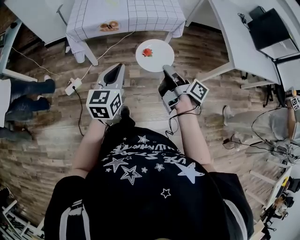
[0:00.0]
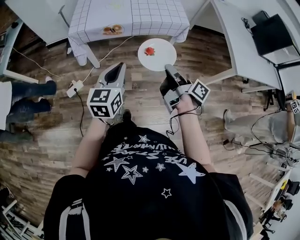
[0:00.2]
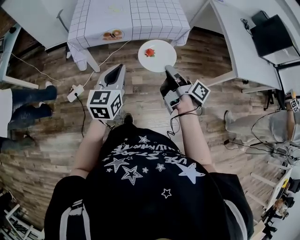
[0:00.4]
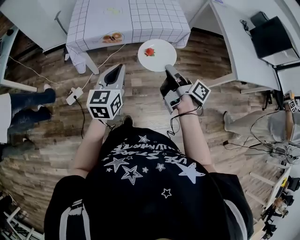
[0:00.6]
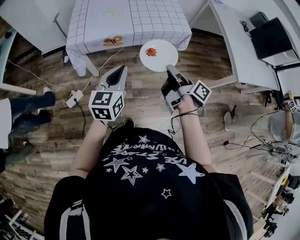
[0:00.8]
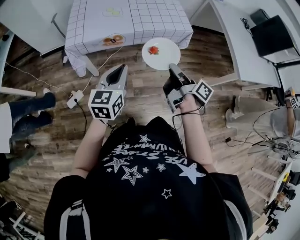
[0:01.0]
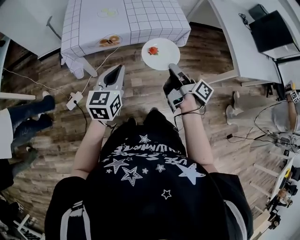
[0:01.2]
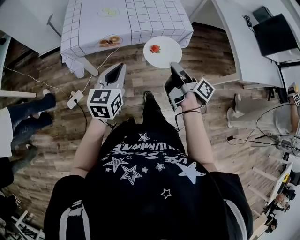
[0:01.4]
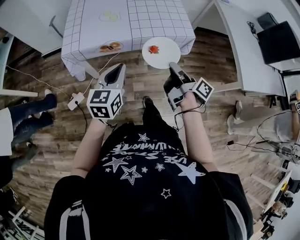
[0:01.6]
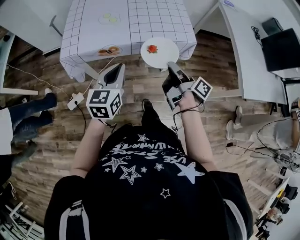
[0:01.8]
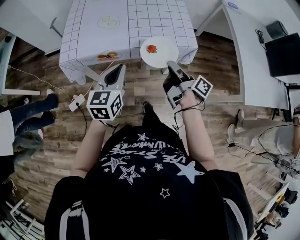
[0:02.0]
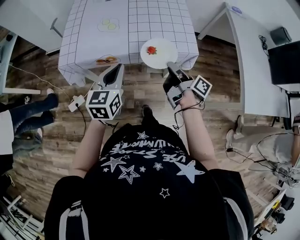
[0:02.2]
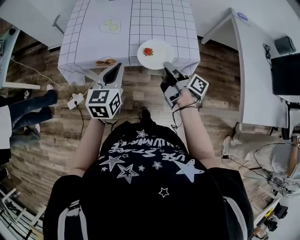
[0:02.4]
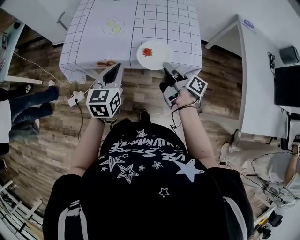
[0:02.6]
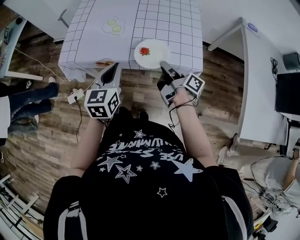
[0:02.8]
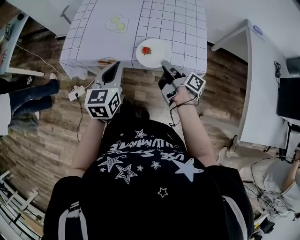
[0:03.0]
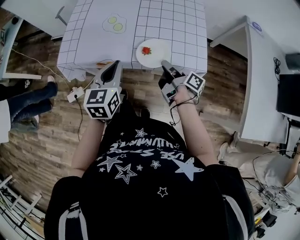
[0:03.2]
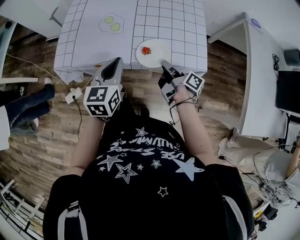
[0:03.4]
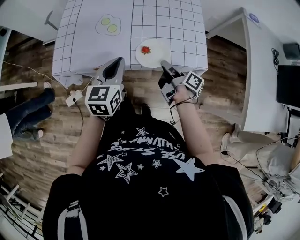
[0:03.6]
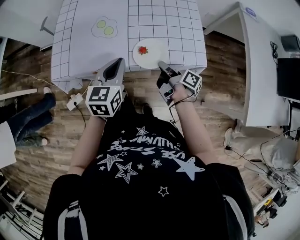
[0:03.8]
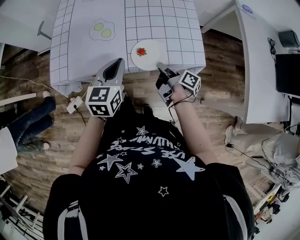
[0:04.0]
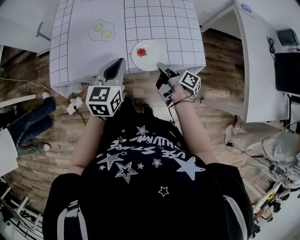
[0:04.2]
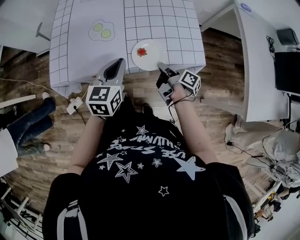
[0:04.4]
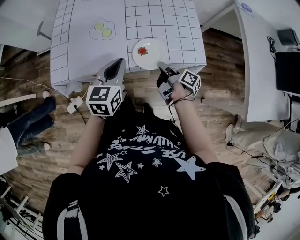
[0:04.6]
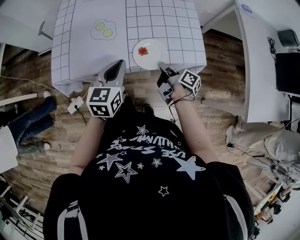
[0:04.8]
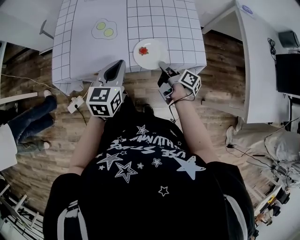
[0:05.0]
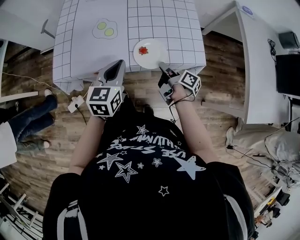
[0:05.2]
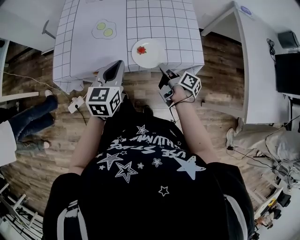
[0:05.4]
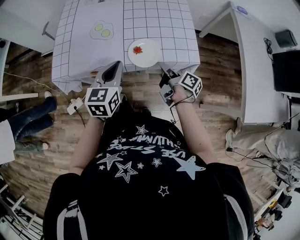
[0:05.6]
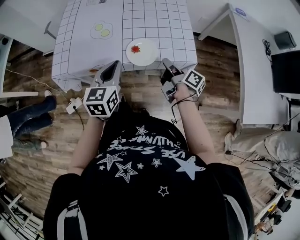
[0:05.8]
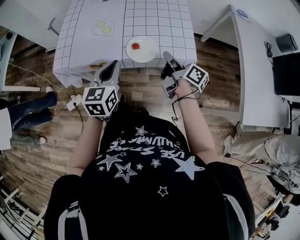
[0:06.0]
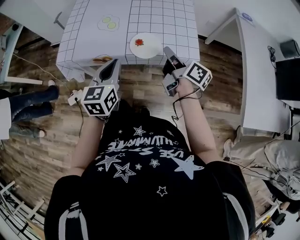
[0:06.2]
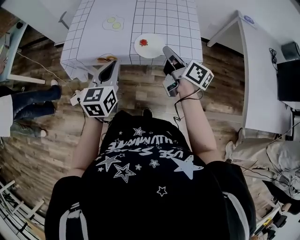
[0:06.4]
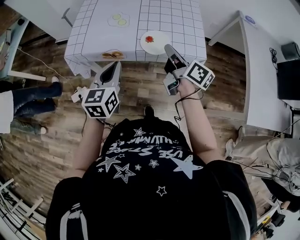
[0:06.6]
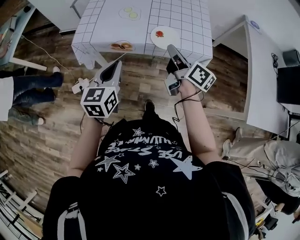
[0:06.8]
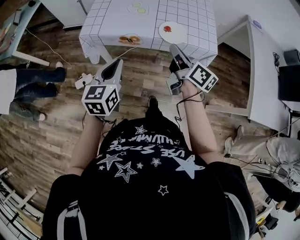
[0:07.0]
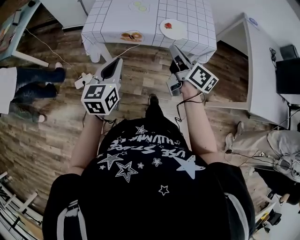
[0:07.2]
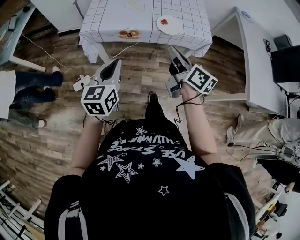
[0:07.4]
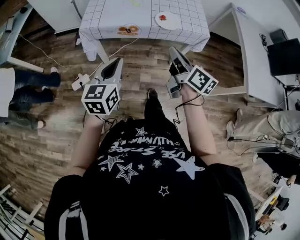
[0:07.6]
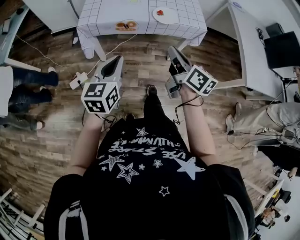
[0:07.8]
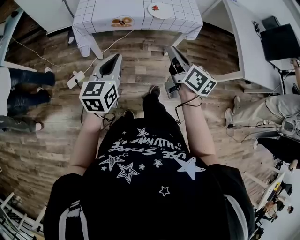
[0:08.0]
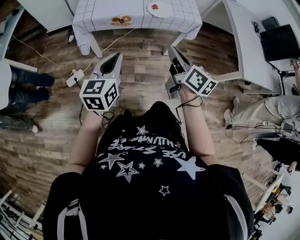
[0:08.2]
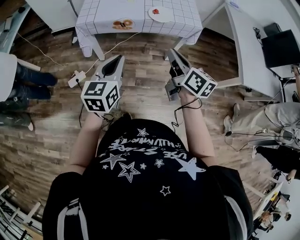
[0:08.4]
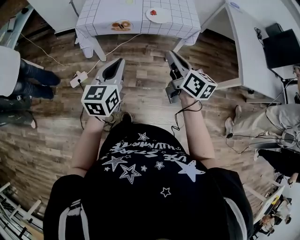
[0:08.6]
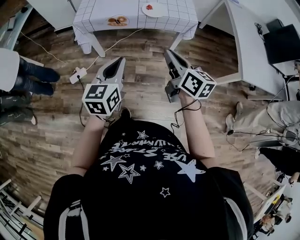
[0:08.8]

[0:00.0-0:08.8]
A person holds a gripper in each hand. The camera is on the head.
0:00.0 to 0:01.4: The left gripper shifts by some 15 cm.
0:01.4 to 0:03.0: The left gripper ends up roughly 20 cm from where it was, and turns by roughly 20 degrees.
0:03.0 to 0:04.4: The left gripper changes place by some 10 cm.
0:04.4 to 0:05.8: The left gripper moves approximately 5 cm.
0:05.8 to 0:07.4: The left gripper shifts by about 25 cm.
0:07.4 to 0:08.8: The left gripper shifts by some 15 cm.

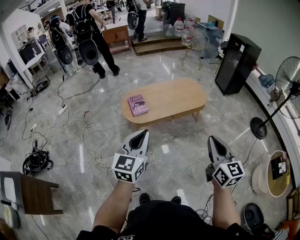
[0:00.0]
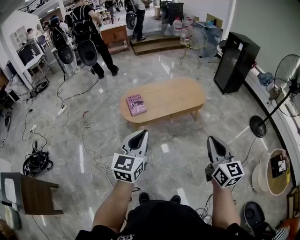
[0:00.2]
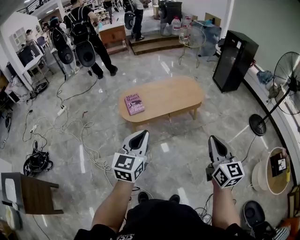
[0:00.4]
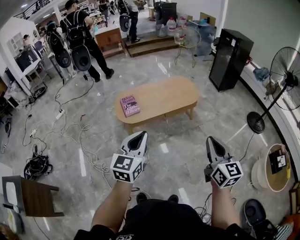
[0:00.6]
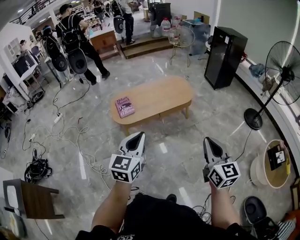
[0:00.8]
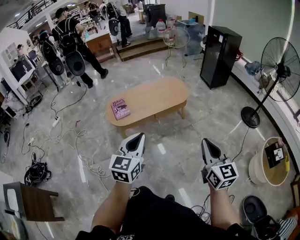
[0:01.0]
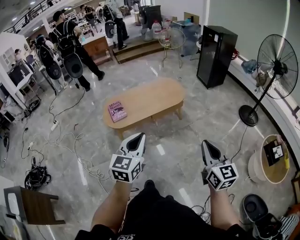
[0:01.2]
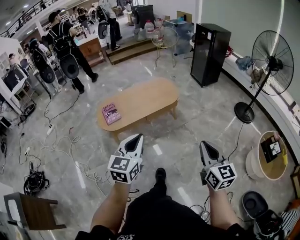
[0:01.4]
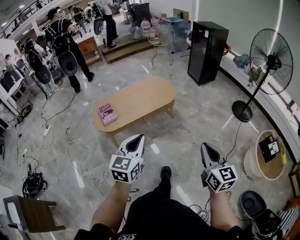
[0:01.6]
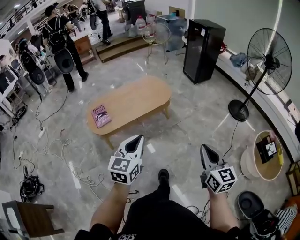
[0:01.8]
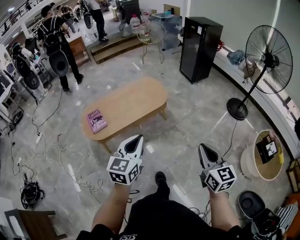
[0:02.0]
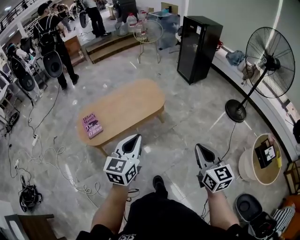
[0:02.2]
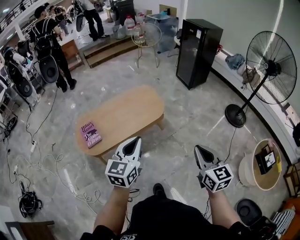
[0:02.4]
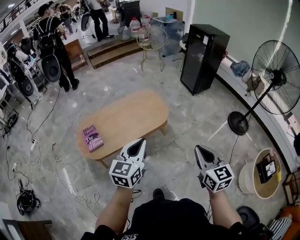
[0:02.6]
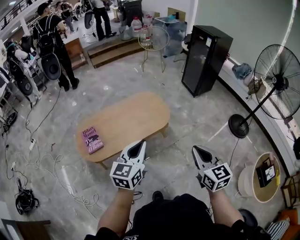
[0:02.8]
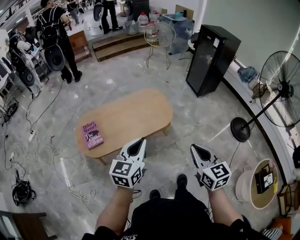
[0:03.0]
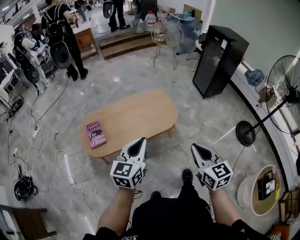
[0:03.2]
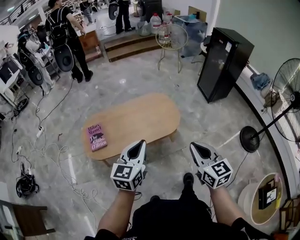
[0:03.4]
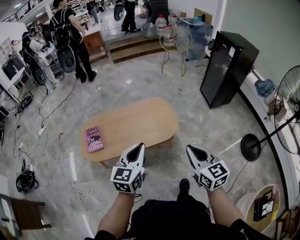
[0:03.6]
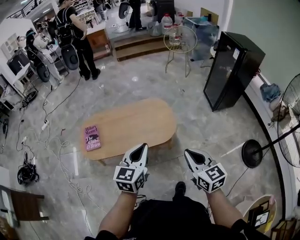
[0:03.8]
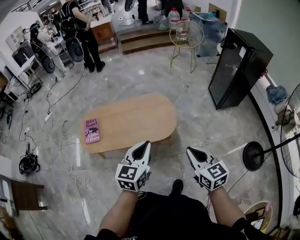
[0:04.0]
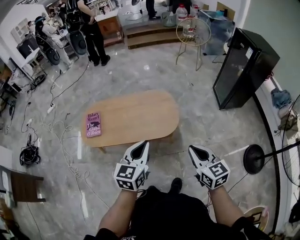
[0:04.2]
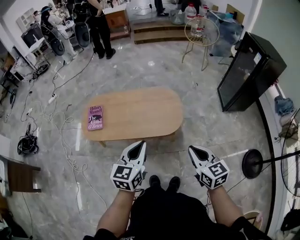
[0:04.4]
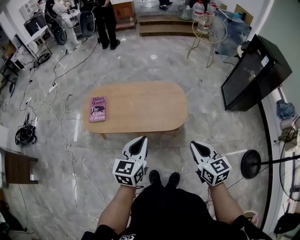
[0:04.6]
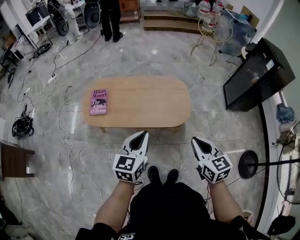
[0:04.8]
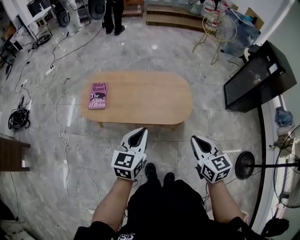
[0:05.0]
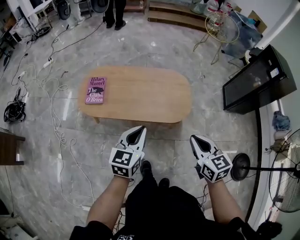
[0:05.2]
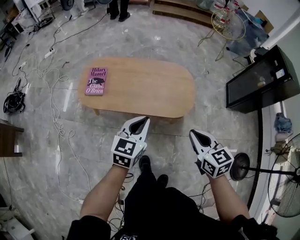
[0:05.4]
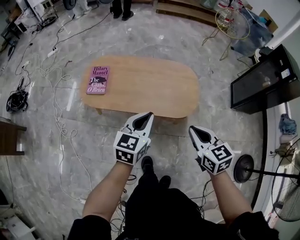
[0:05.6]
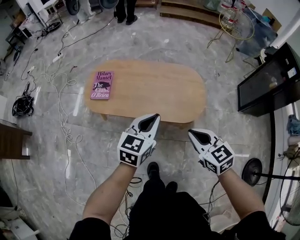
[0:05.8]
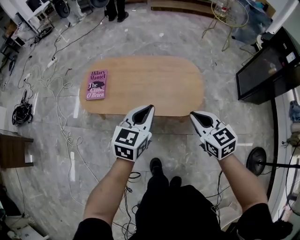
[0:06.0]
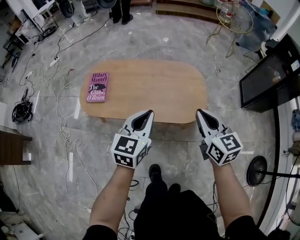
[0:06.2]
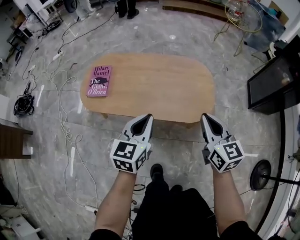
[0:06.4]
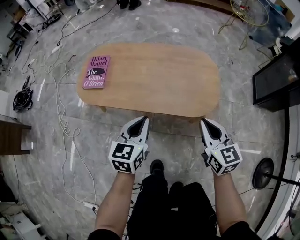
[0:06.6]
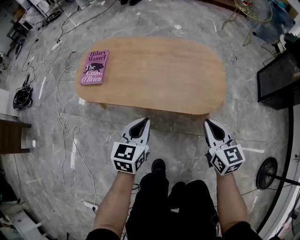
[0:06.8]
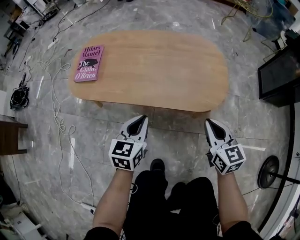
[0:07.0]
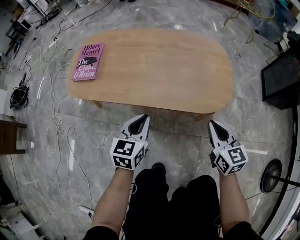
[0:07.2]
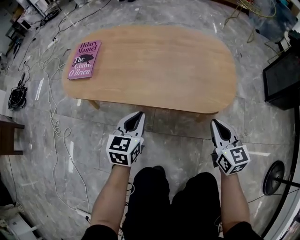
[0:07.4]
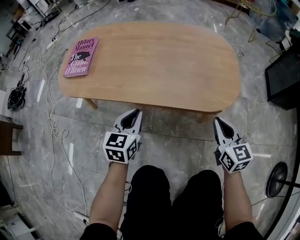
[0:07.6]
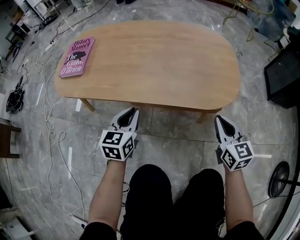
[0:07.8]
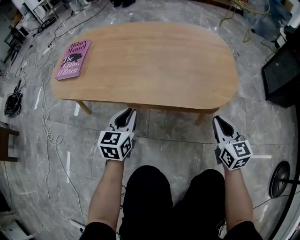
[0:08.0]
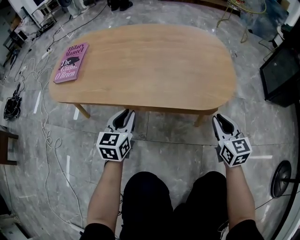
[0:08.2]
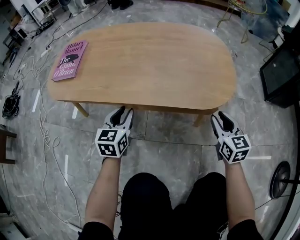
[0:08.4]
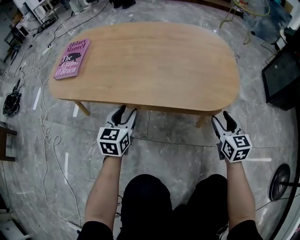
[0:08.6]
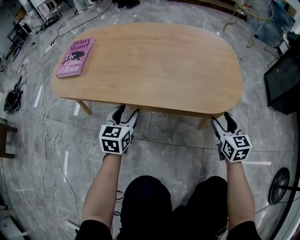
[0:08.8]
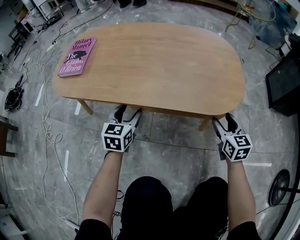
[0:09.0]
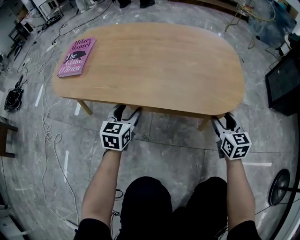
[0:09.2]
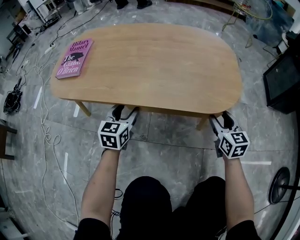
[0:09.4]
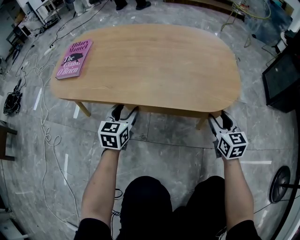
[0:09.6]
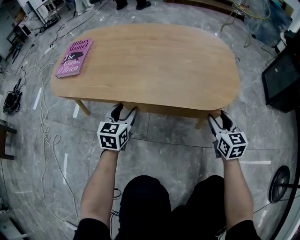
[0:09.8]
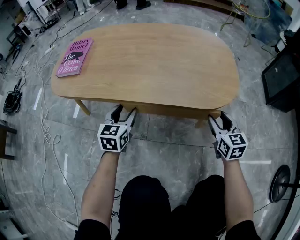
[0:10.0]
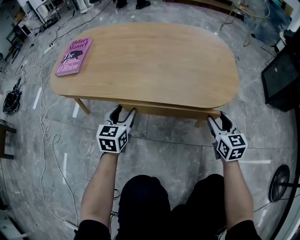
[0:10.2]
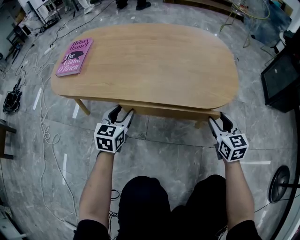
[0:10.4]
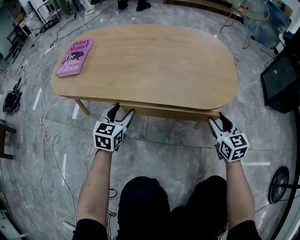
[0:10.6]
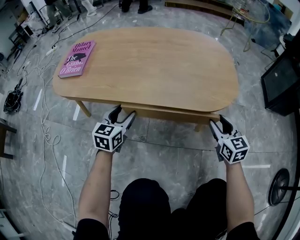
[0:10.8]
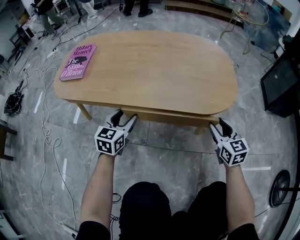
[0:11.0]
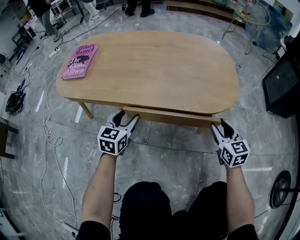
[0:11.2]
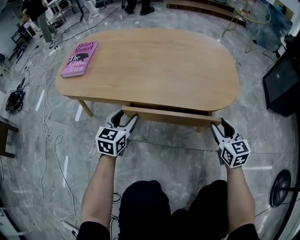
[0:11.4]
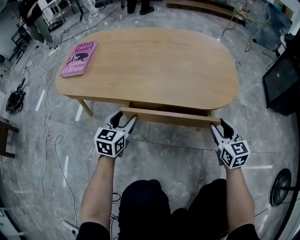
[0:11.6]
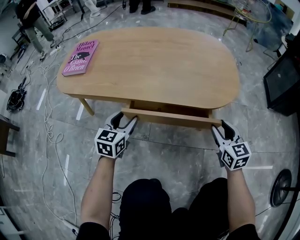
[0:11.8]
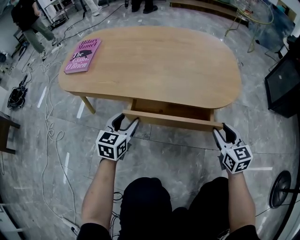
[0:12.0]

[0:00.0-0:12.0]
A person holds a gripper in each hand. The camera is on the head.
0:00.0 to 0:01.6: The two grippers go approximately 25 cm to the right.
0:01.6 to 0:03.0: The grippers both shift forward by about 35 cm.
0:03.0 to 0:04.4: The left gripper ends up some 20 cm from where it was, and turns by about 30 degrees; the right gripper changes place by roughly 25 cm, and swivels about 30 degrees.
0:04.4 to 0:06.0: The left gripper moves downward, forward and to the left, roughly 20 cm, while the right gripper shifts some 20 cm forward, downward and to the left.
0:06.0 to 0:07.6: Both grippers travel together downward, roughly 40 cm.
0:07.6 to 0:09.0: Both grippers travel together downward, about 10 cm. The right gripper opens its fingers. Meanwhile the left gripper opens up.
0:09.0 to 0:10.4: There are only small adjustments of the grippers.
0:10.4 to 0:12.0: There are only small adjustments of the grippers.

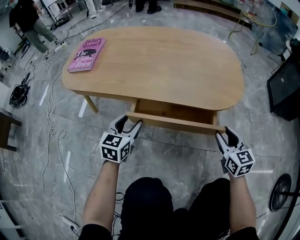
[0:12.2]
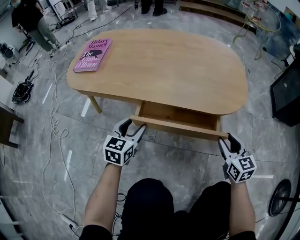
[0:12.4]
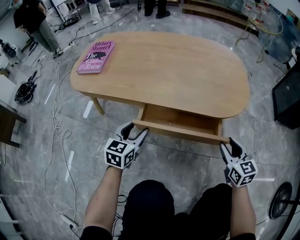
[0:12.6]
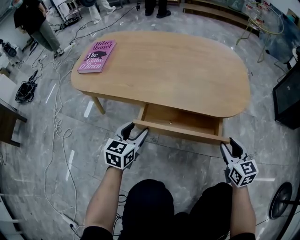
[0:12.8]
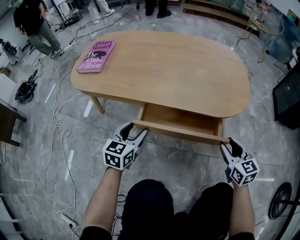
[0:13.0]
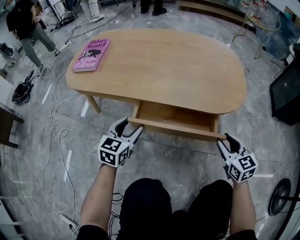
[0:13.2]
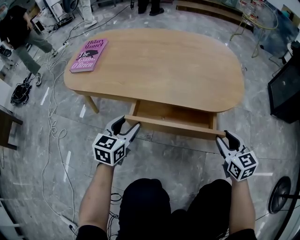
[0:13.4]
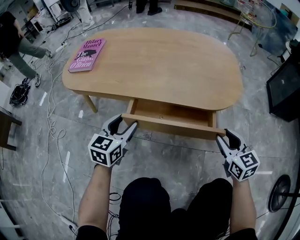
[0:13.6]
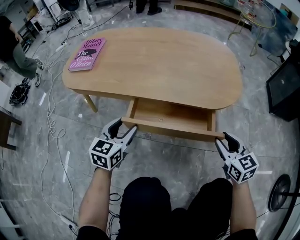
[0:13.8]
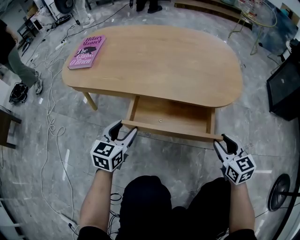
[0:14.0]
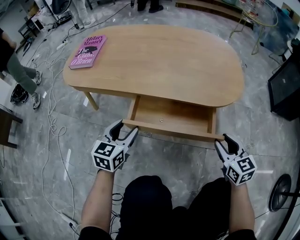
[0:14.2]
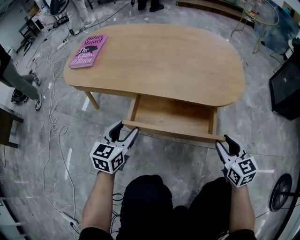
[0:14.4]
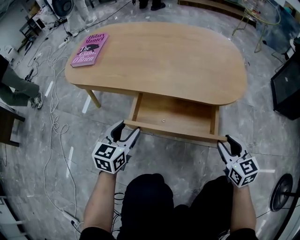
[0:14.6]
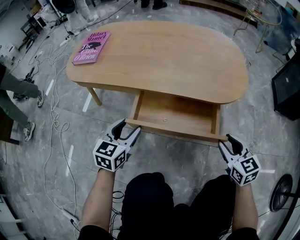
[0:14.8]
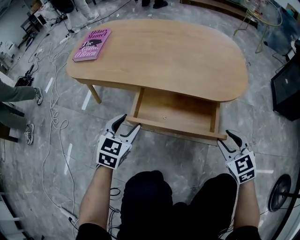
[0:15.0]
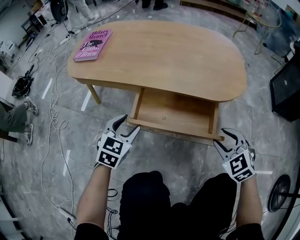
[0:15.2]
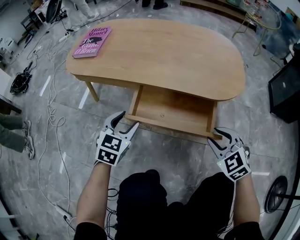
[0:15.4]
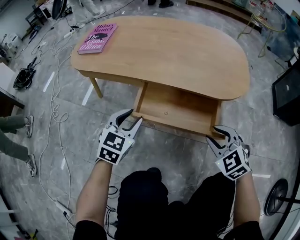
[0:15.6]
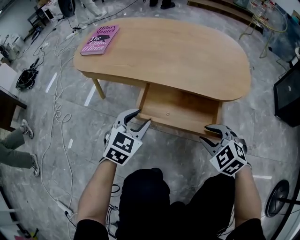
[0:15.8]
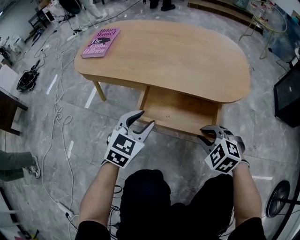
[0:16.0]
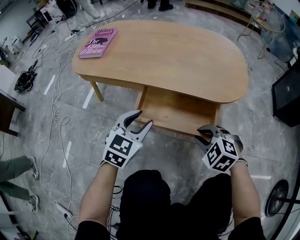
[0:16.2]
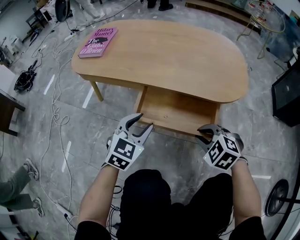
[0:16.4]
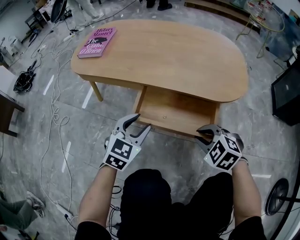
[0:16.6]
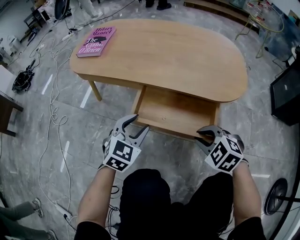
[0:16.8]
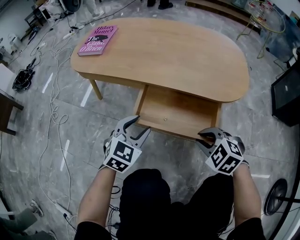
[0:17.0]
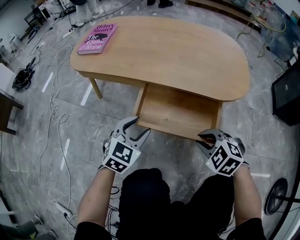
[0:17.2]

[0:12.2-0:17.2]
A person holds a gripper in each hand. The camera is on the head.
0:12.2 to 0:13.8: There are only small adjustments of the grippers.
0:13.8 to 0:15.6: The right gripper shifts roughly 10 cm to the left, and swivels about 40 degrees.
0:15.6 to 0:17.2: The right gripper shifts approximately 5 cm to the left, and rotates roughly 20 degrees.
